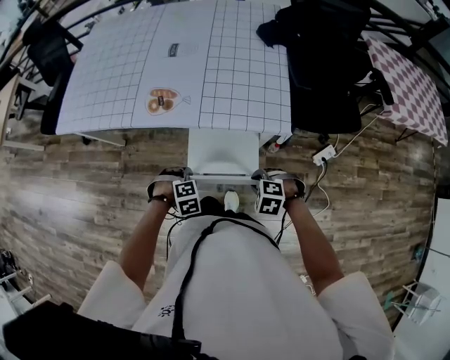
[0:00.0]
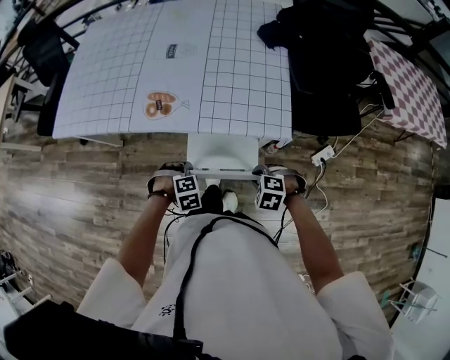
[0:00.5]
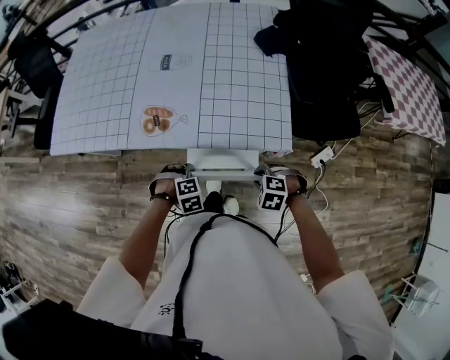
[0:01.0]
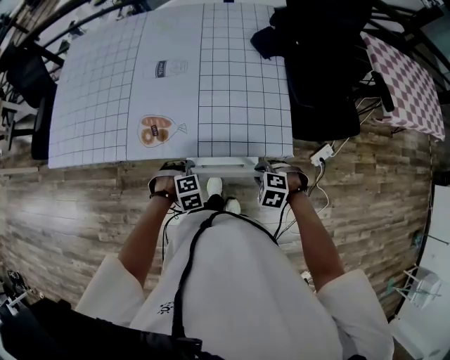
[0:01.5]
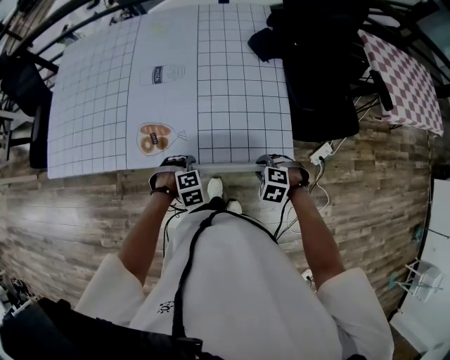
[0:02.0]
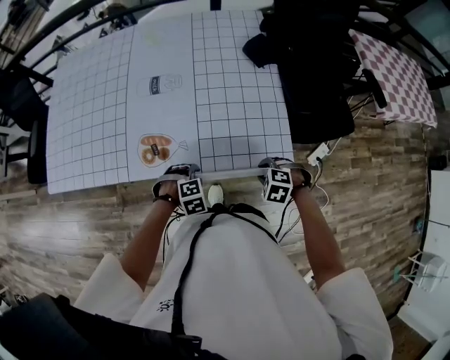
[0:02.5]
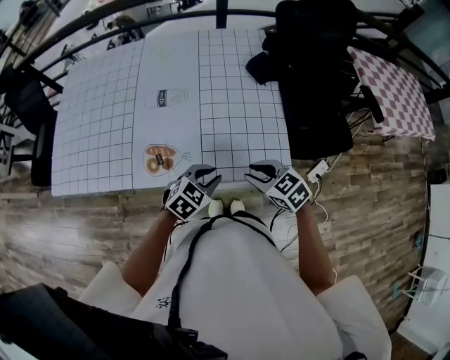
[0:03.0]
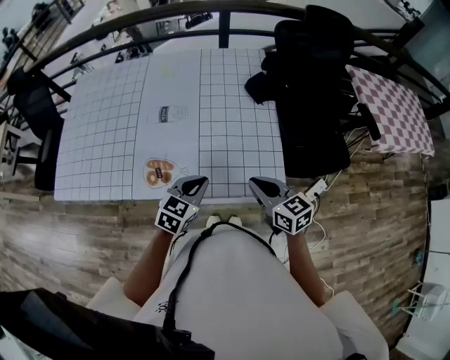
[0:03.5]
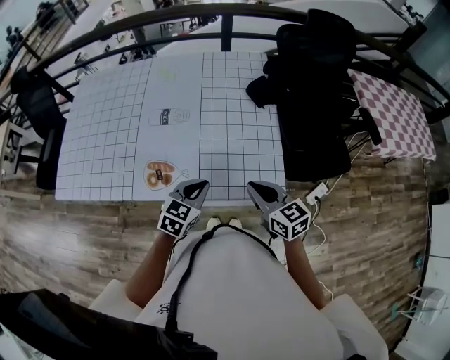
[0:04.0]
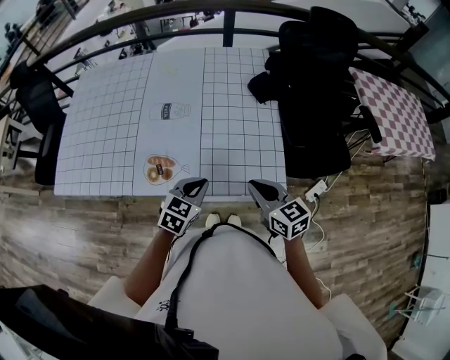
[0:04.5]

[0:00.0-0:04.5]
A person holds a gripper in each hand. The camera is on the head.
0:00.0 to 0:02.0: The right gripper changes place by roughly 20 cm; the left gripper ends up about 20 cm from where it was.
0:02.0 to 0:04.5: The two grippers go approximately 20 cm upward. The right gripper tilts its fingers approximately 50 degrees upward, and closes its fingers. The left gripper angles its fingers upward, by about 40 degrees, and closes up.

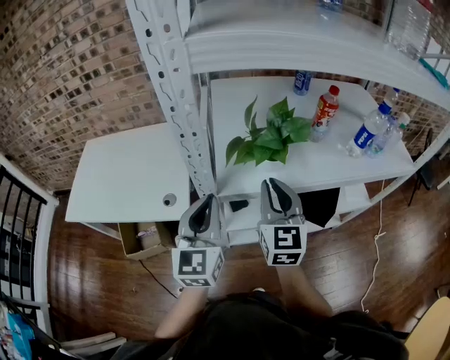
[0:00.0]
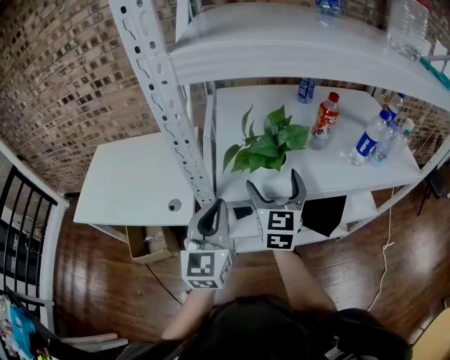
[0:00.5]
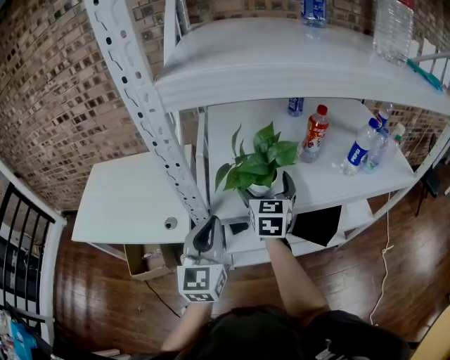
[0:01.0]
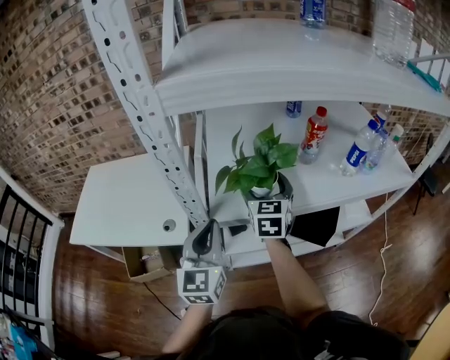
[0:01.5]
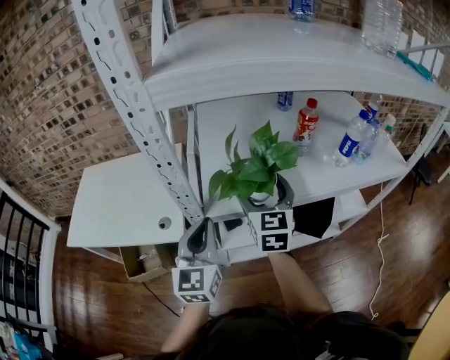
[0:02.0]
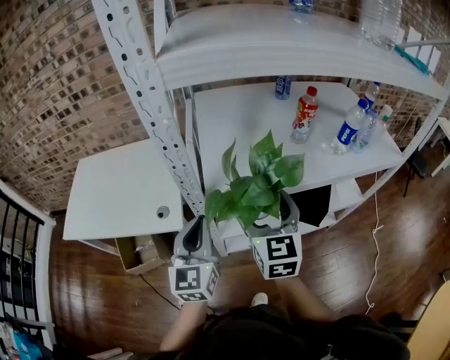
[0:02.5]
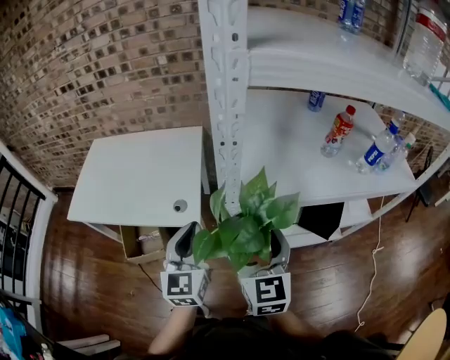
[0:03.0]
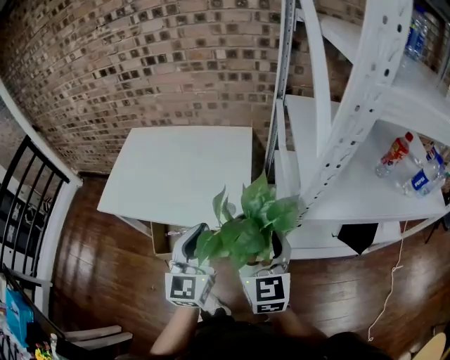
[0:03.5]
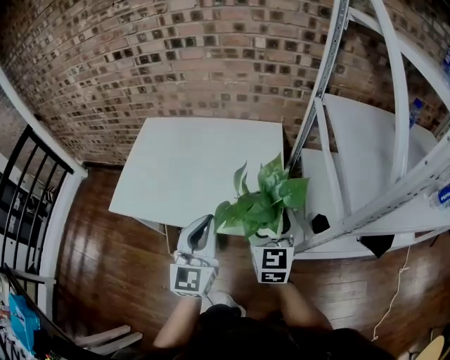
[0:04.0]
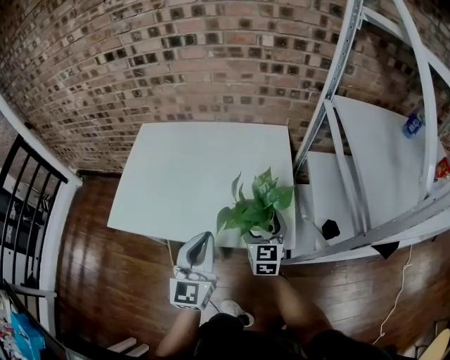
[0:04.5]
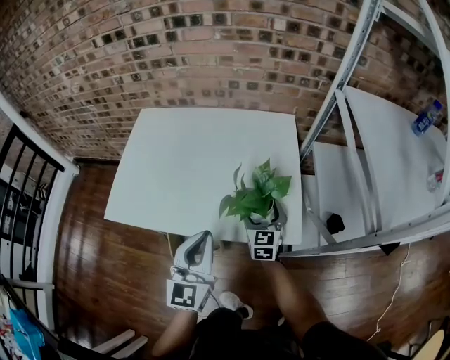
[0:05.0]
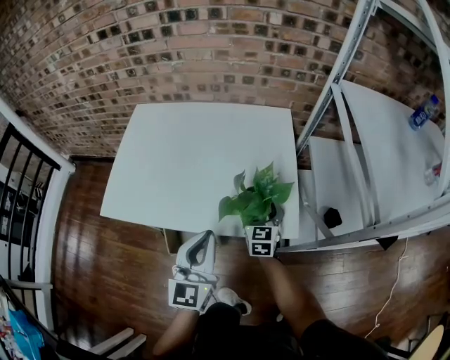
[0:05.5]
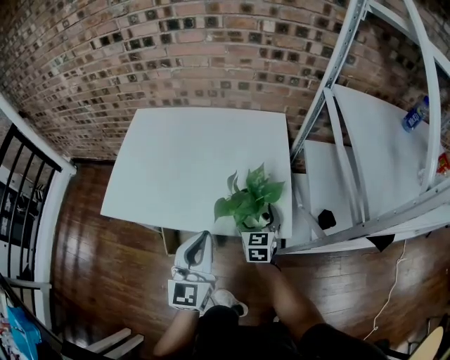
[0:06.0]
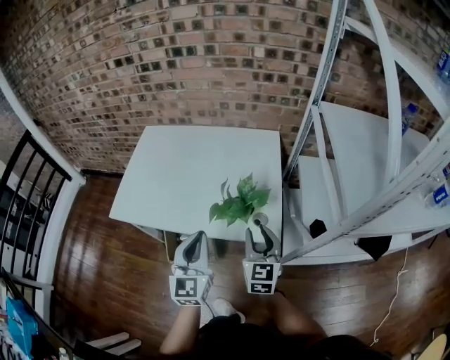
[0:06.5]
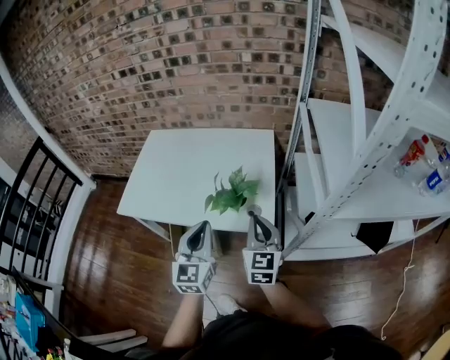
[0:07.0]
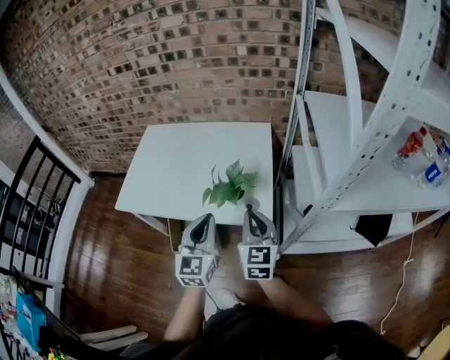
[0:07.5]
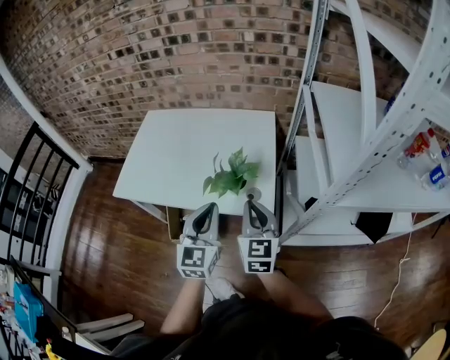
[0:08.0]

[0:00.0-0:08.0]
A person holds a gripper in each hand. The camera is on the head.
0:00.0 to 0:02.0: The right gripper goes about 5 cm forward, and opens up.
0:02.0 to 0:04.0: The two grippers travel together, to the left, approximately 40 cm.
0:04.0 to 0:06.0: The right gripper is displaced downward by approximately 20 cm, while the left gripper goes approximately 10 cm downward.
0:06.0 to 0:08.0: The left gripper heads to the right, covering about 10 cm, while the right gripper moves upward and backward, approximately 25 cm, and closes up.

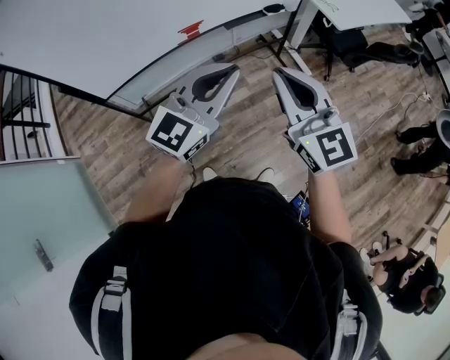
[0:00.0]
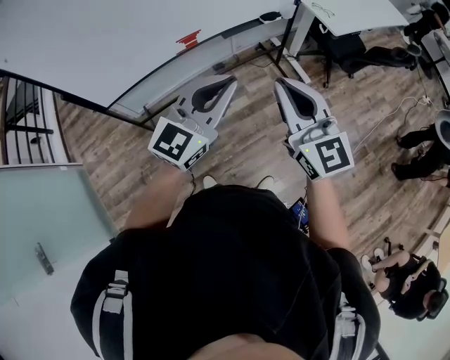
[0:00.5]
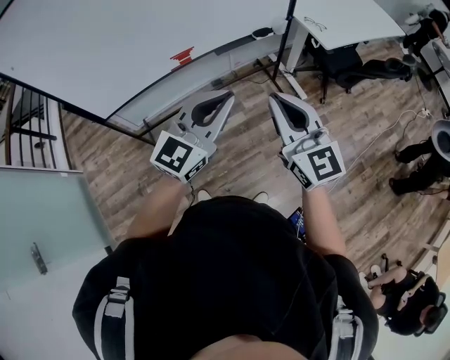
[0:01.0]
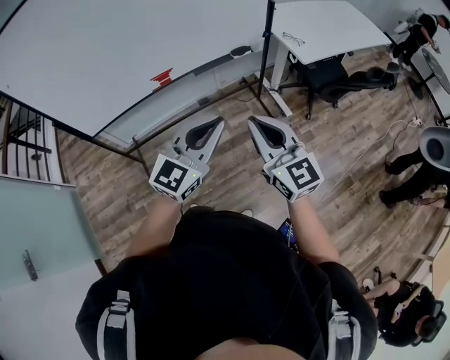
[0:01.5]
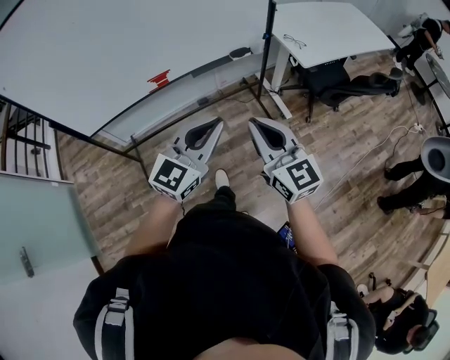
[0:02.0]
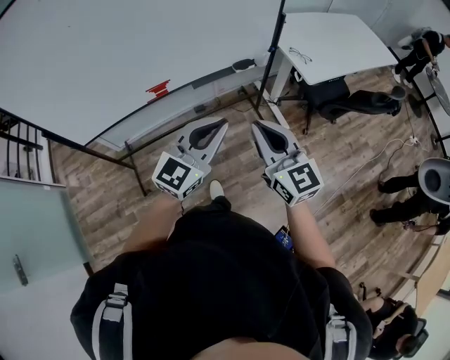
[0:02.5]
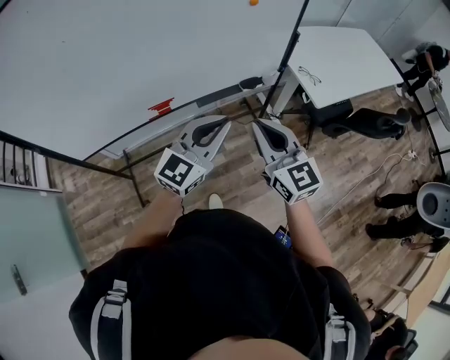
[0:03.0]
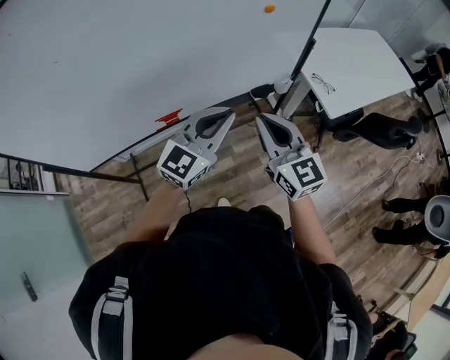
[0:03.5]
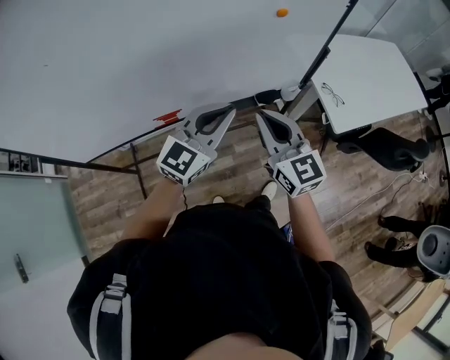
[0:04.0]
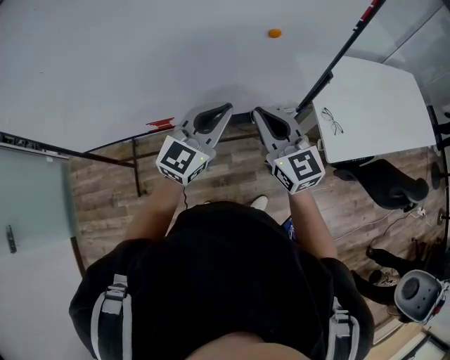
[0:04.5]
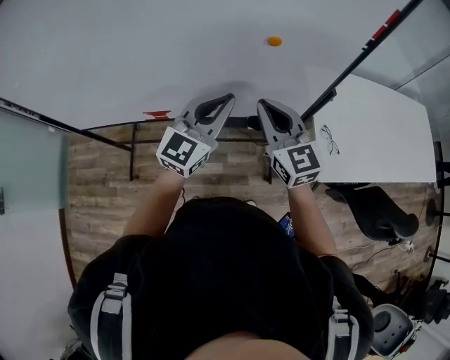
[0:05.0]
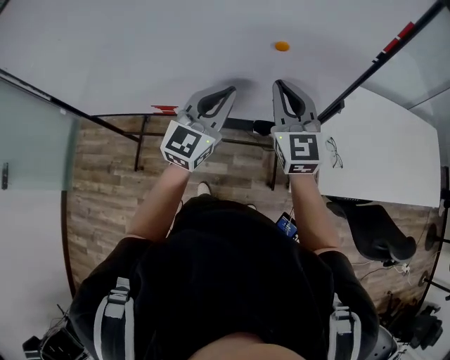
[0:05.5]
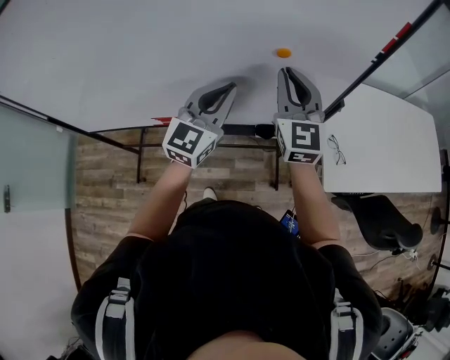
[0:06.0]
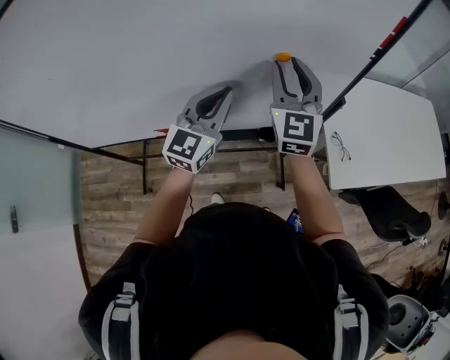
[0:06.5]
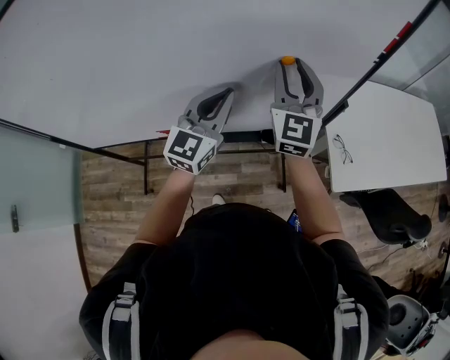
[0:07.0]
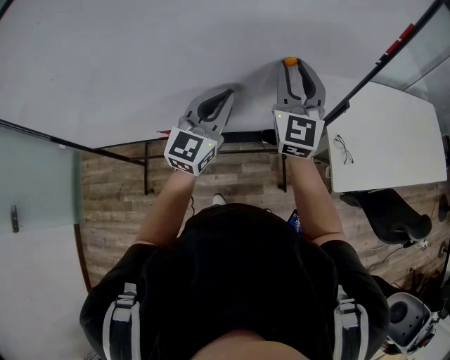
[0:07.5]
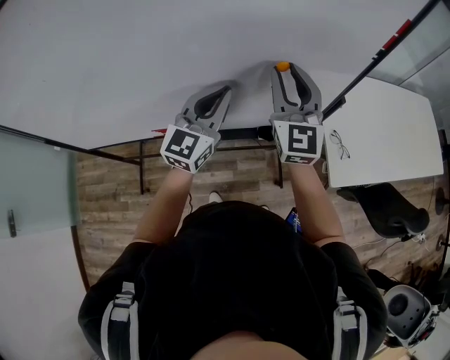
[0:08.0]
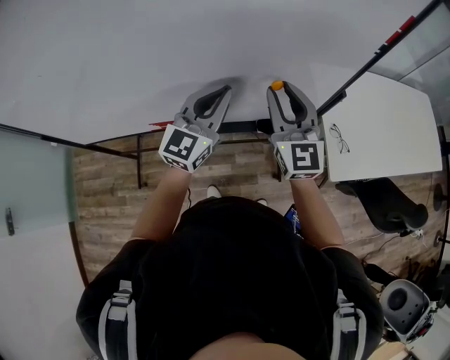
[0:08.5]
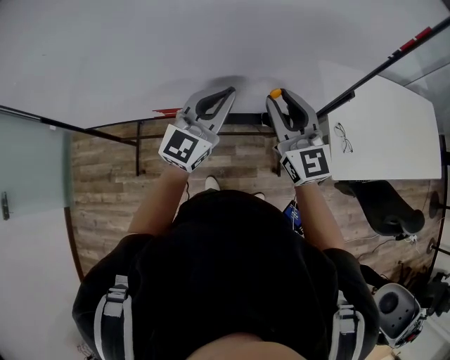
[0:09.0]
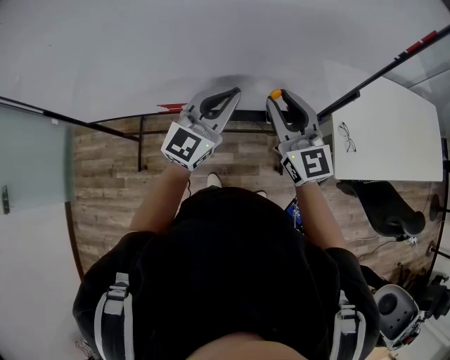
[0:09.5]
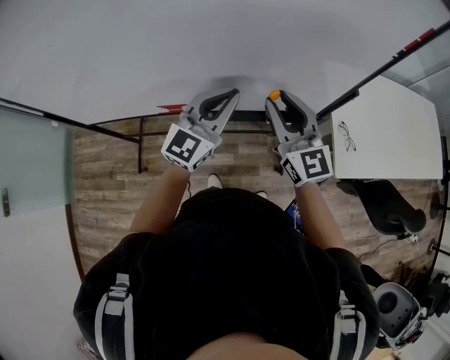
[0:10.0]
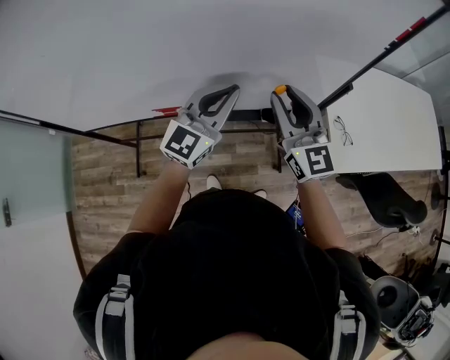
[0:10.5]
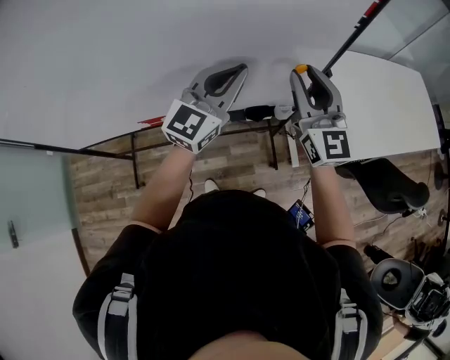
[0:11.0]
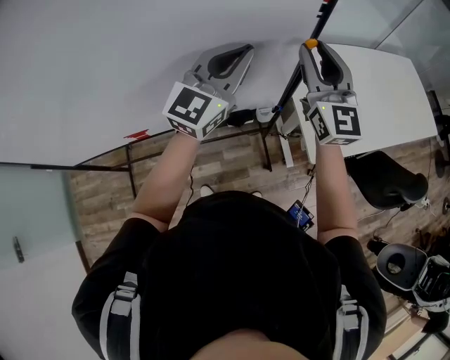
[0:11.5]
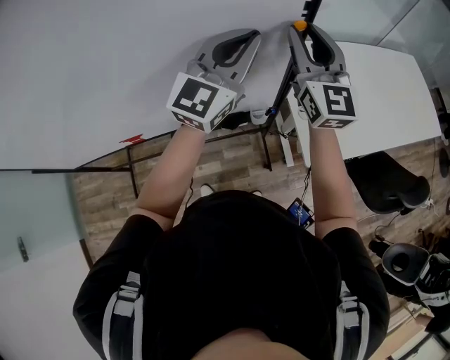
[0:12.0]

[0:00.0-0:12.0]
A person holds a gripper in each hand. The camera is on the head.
0:00.0 to 0:02.0: The two grippers go roughly 15 cm to the right.
0:02.0 to 0:04.0: Both grippers travel together forward, approximately 35 cm.
0:04.0 to 0:06.0: Both grippers travel together forward and to the right, some 20 cm. The left gripper swivels roughly 30 degrees.
0:06.0 to 0:08.0: The right gripper opens.
0:08.0 to 0:10.0: The right gripper shifts some 10 cm backward and downward, and swivels some 30 degrees. Meanwhile the left gripper is displaced backward by roughly 5 cm.
0:10.0 to 0:12.0: Both grippers move to the right, forward and upward, roughly 30 cm. The right gripper changes its angle by some 30 degrees.

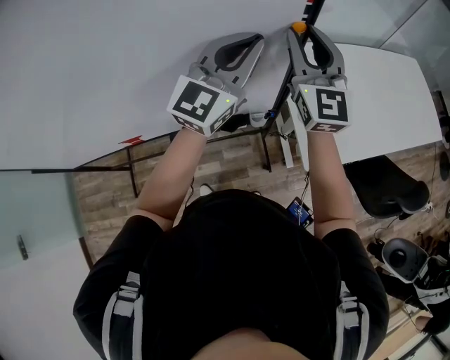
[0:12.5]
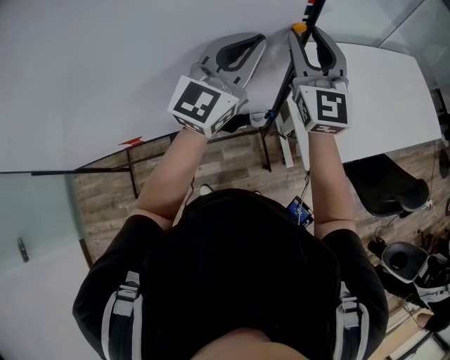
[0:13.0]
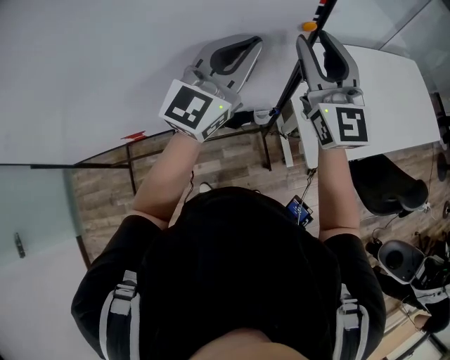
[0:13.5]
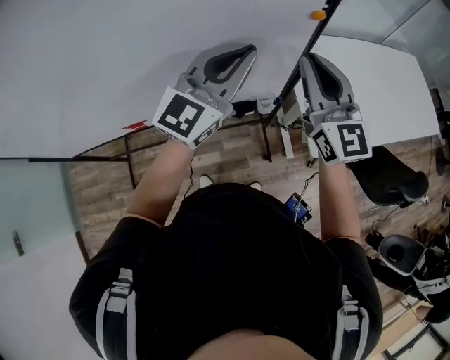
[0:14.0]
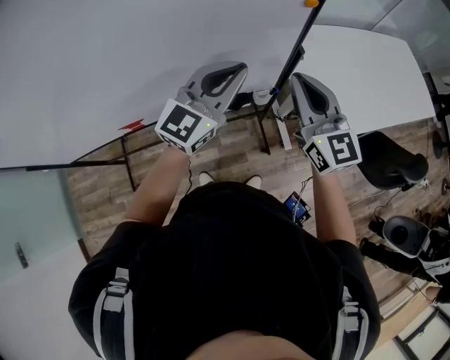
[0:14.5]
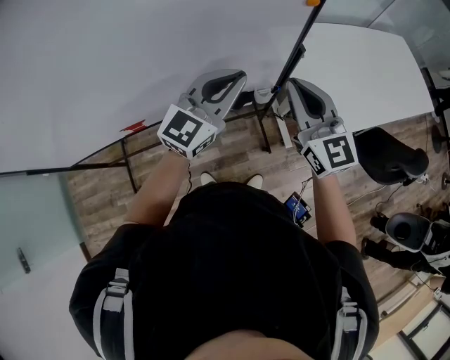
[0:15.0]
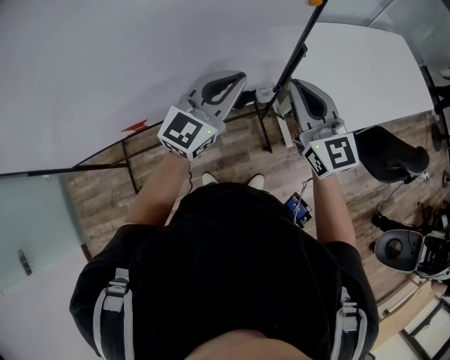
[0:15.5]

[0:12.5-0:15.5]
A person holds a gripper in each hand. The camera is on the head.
0:12.5 to 0:14.0: Both grippers travel together backward, roughly 10 cm. The right gripper closes its fingers.
0:14.0 to 0:15.5: The right gripper goes some 10 cm downward and backward. The left gripper is displaced downward by some 10 cm.
